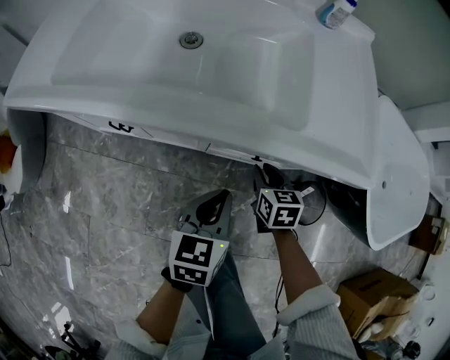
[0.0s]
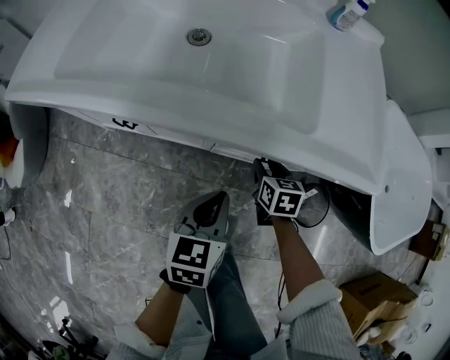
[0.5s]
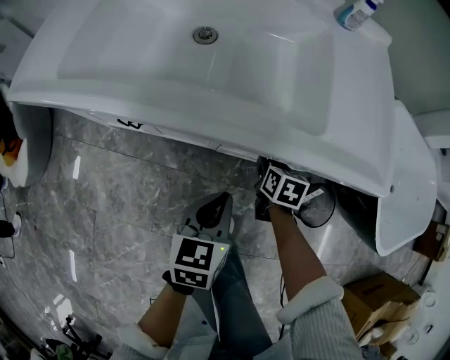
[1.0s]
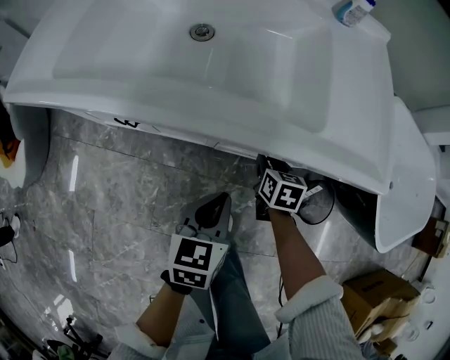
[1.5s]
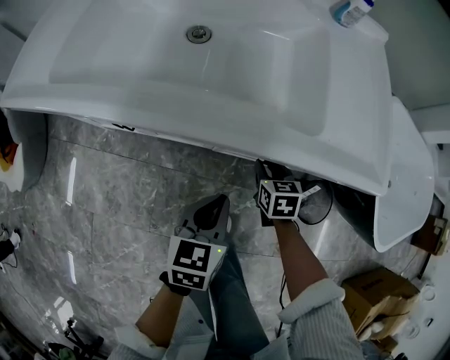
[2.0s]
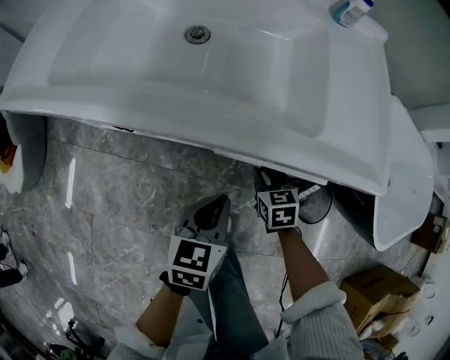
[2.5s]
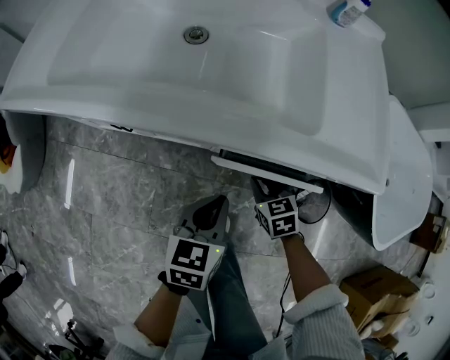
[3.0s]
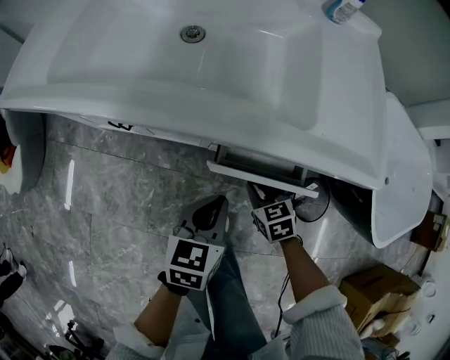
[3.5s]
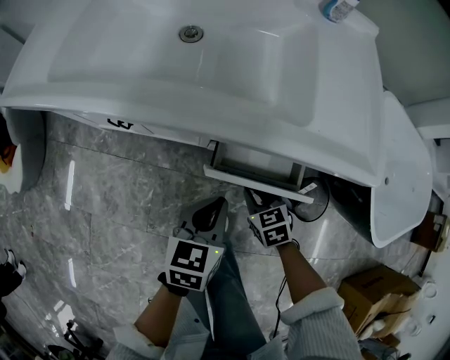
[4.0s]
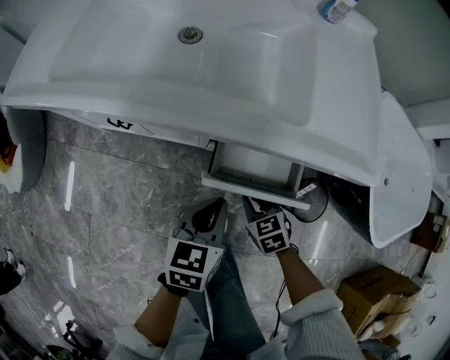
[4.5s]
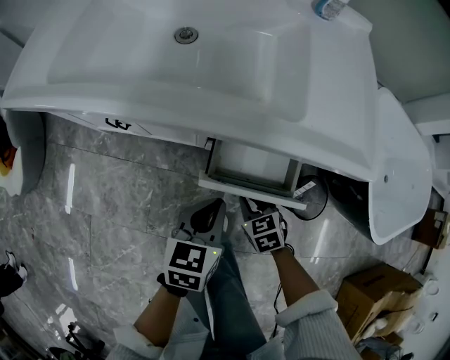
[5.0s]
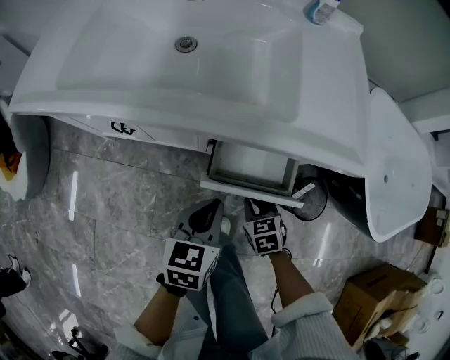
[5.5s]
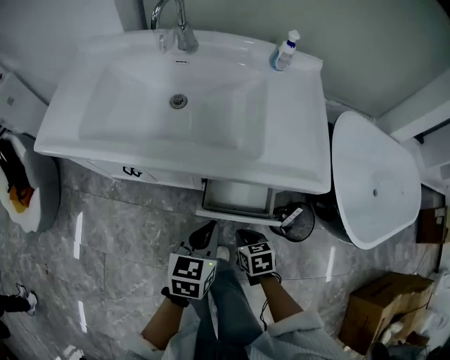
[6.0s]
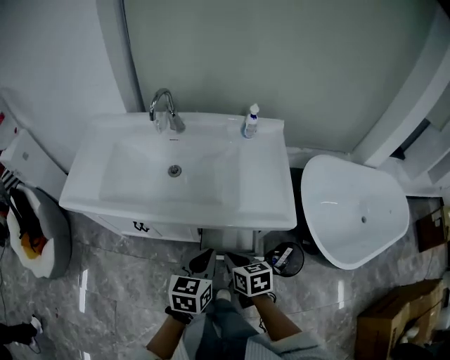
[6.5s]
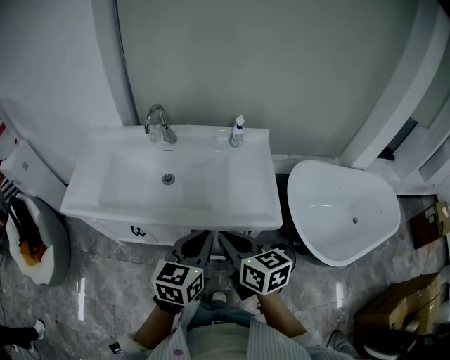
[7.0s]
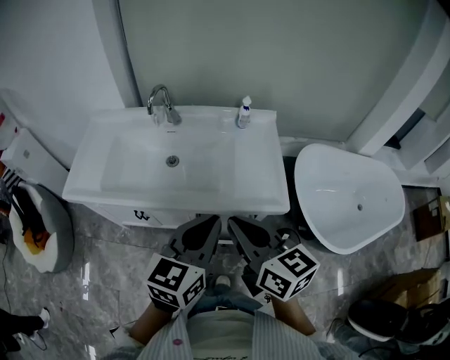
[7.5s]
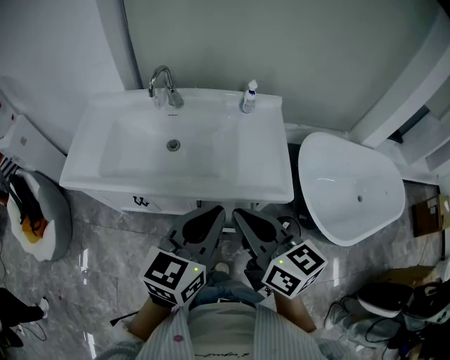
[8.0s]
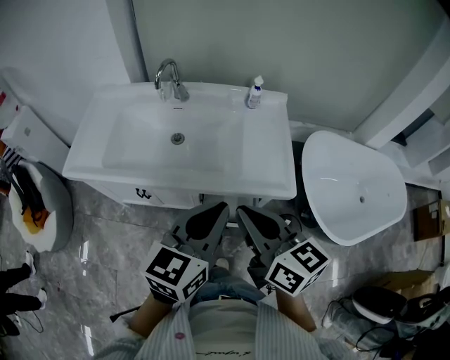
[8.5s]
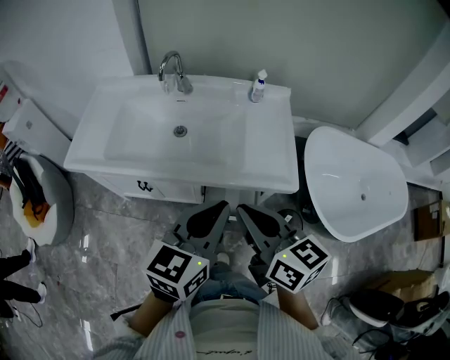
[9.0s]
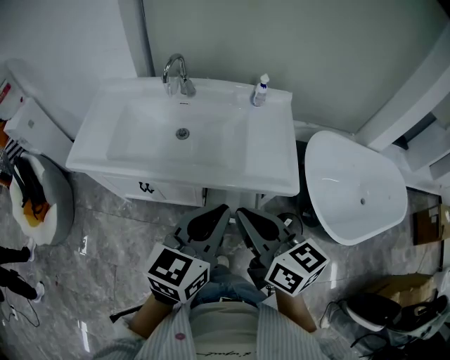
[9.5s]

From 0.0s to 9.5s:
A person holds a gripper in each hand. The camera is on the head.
From 0.0s to 2.0s: The grippers make only small movements.
From 2.0s to 4.0s: The right gripper heads backward, covering about 10 cm, and turns by about 20 degrees.
From 4.0s to 5.5s: The grippers make only small movements.
From 5.5s to 7.5s: The two grippers go about 40 cm upward. The left gripper changes its angle by some 30 degrees. The right gripper points its fingers some 50 degrees further upward.
From 7.5s to 9.5s: The grippers move only a little.

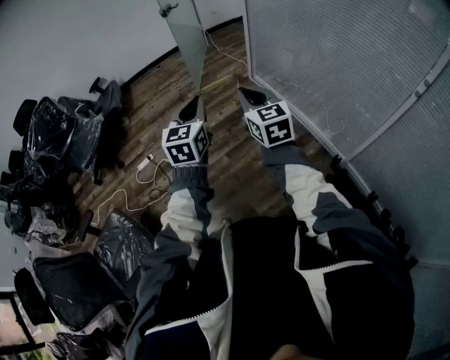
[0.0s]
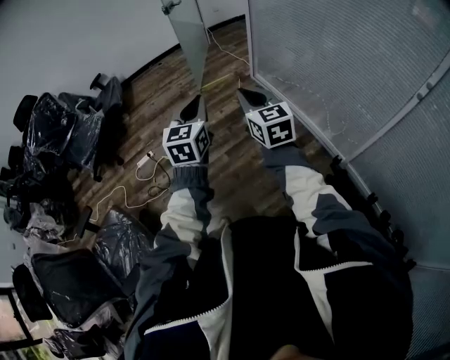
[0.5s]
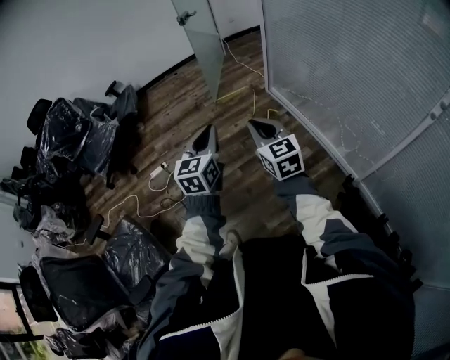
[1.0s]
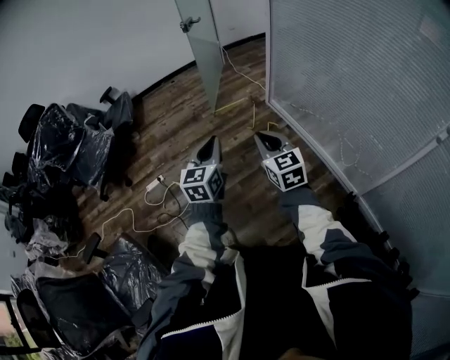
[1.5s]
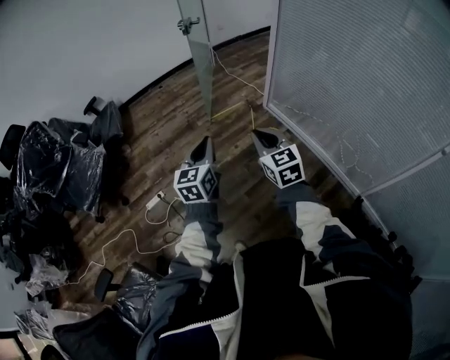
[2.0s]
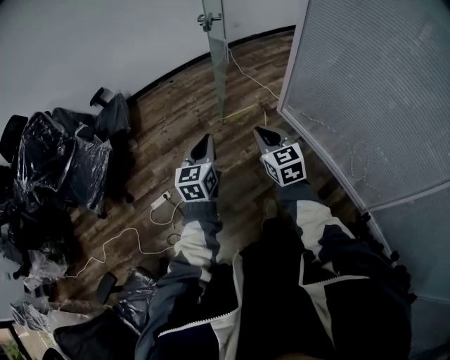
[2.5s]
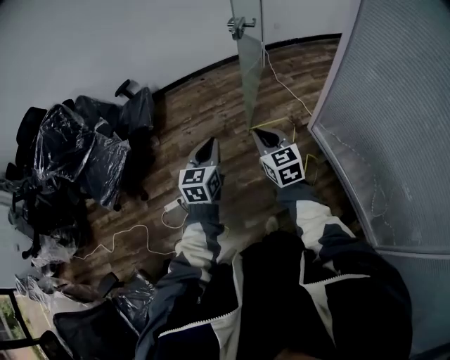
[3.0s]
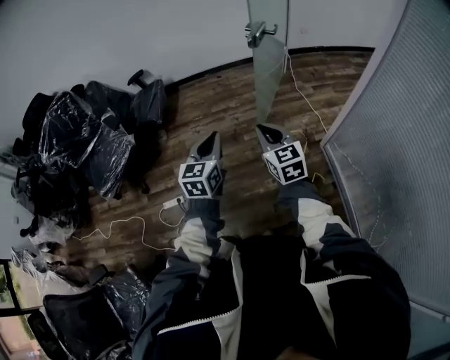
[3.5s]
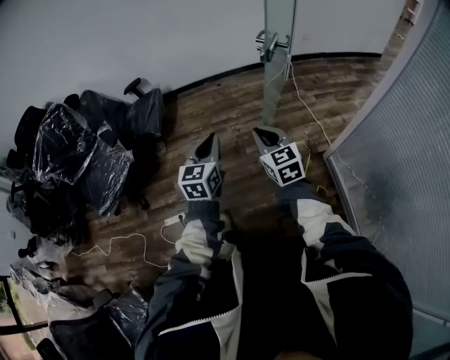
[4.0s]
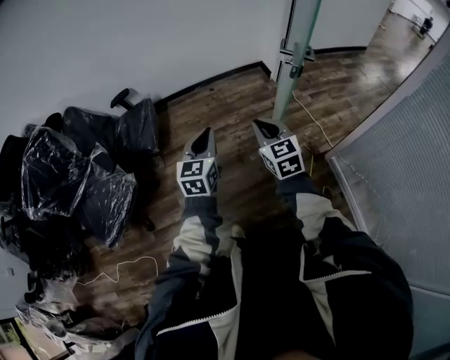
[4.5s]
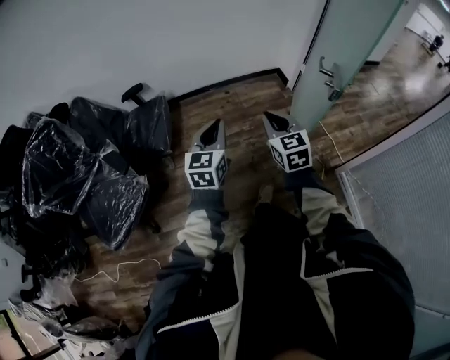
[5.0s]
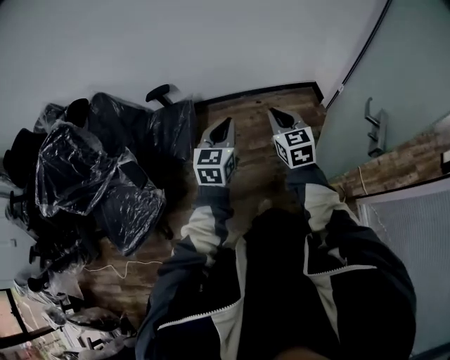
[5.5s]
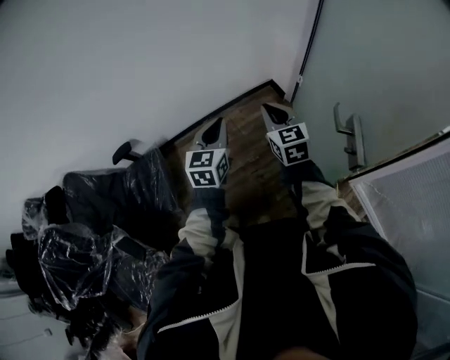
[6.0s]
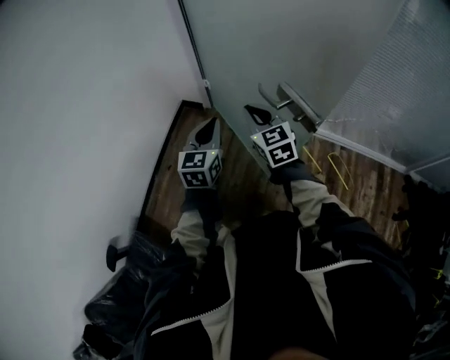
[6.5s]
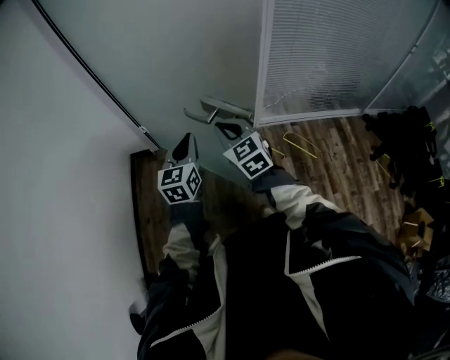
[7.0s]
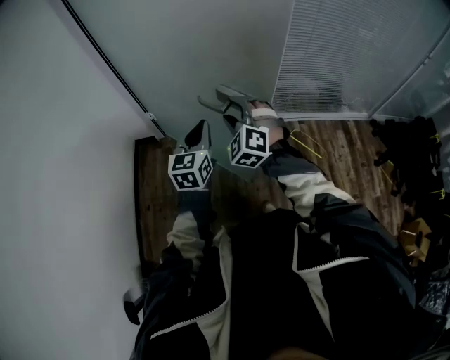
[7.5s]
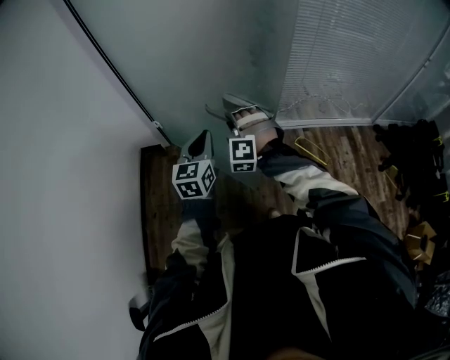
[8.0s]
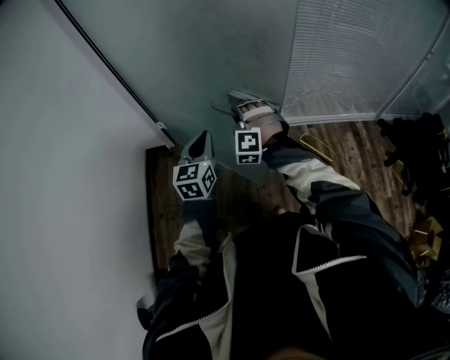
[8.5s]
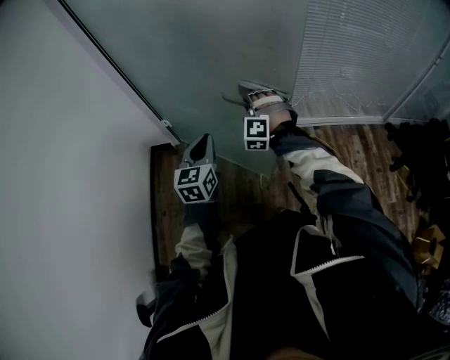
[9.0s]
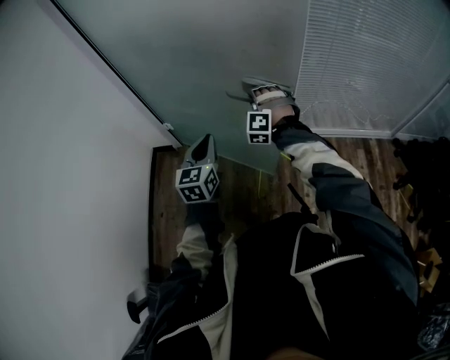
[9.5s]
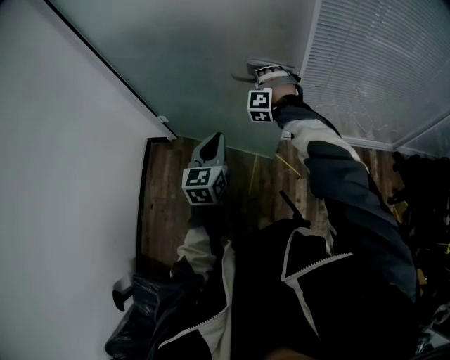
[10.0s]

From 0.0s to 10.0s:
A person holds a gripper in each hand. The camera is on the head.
From 0.0s to 2.0s: The two grippers go approximately 25 cm forward and to the left.
From 2.0s to 4.0s: Both grippers are carried forward, about 40 cm. The left gripper changes its angle by about 20 degrees. Meanwhile the right gripper changes its angle by approximately 20 degrees.
From 4.0s to 6.0s: Both grippers are carried forward, about 60 cm. The right gripper swivels some 20 degrees.
From 6.0s to 8.0s: The left gripper changes place by about 30 cm, and rotates some 60 degrees. The right gripper moves approximately 25 cm, turns by some 80 degrees, and opens.
From 8.0s to 10.0s: The right gripper shifts about 30 cm forward, while the left gripper moves forward and to the right, some 15 cm.

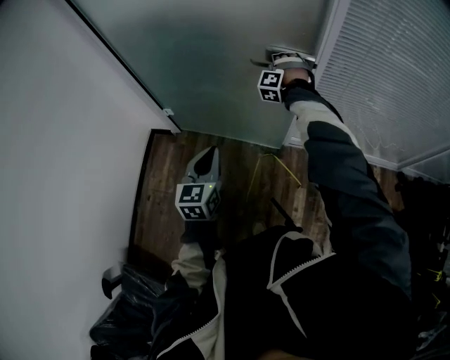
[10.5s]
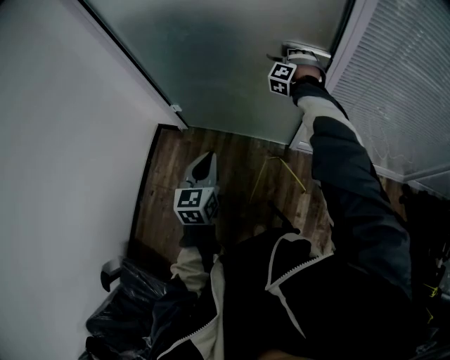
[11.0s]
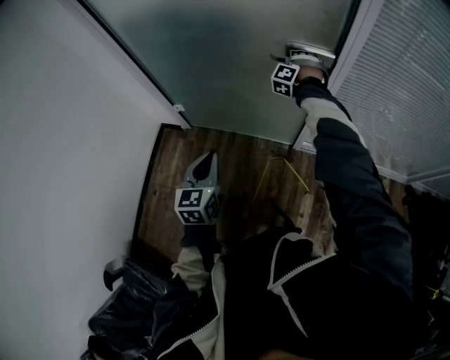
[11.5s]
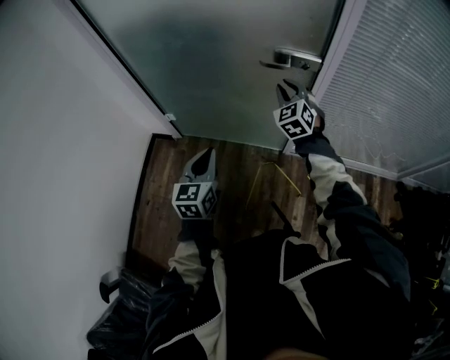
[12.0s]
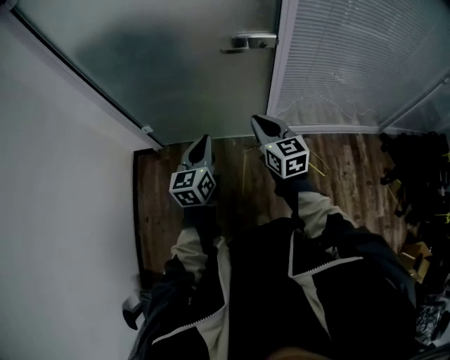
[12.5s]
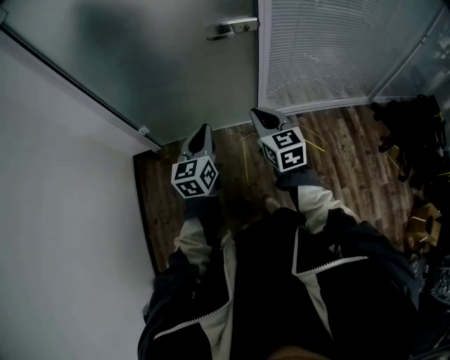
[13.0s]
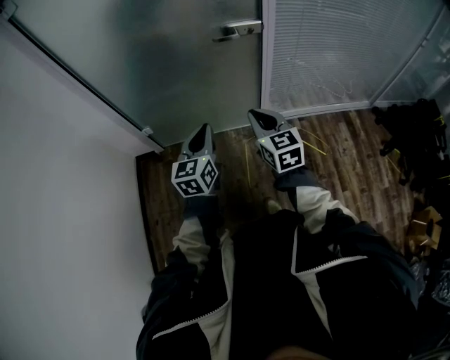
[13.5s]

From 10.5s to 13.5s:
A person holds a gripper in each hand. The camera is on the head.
From 10.5s to 12.0s: The right gripper shifts roughly 10 cm backward and upward, and rolls clockwise, seen from behind, by approximately 50 degrees.
From 12.0s to 13.5s: The right gripper is displaced backward by roughly 30 cm, and rotates around the line of its fingers by about 40 degrees, clockwise from behind. Meanwhile the left gripper heads backward, covering roughly 5 cm.

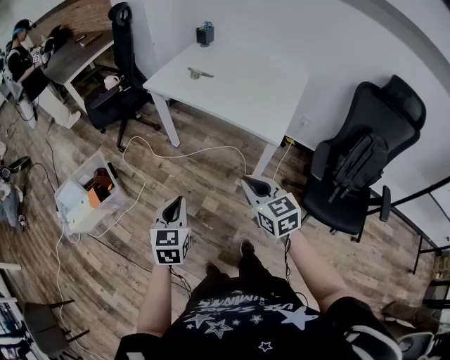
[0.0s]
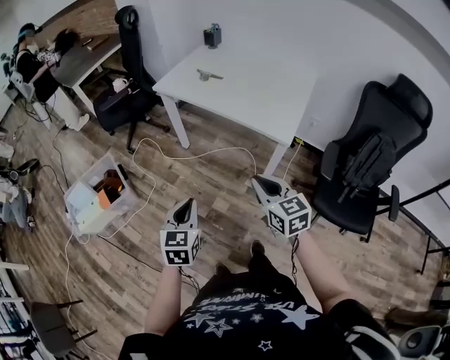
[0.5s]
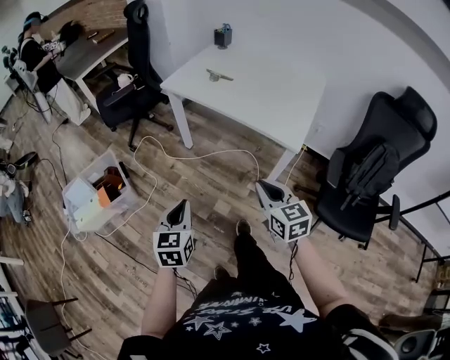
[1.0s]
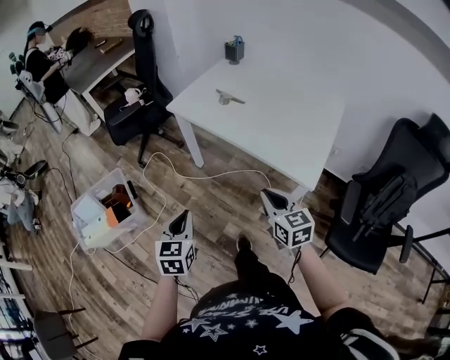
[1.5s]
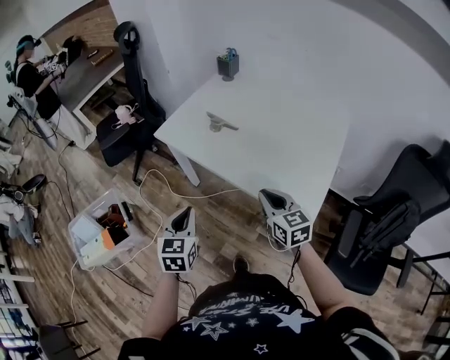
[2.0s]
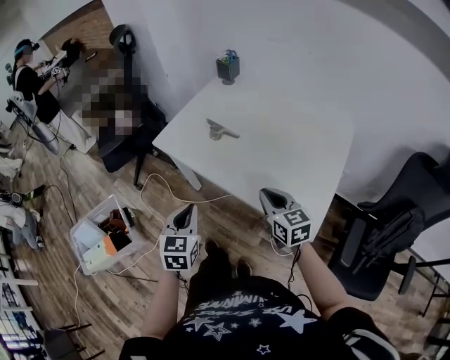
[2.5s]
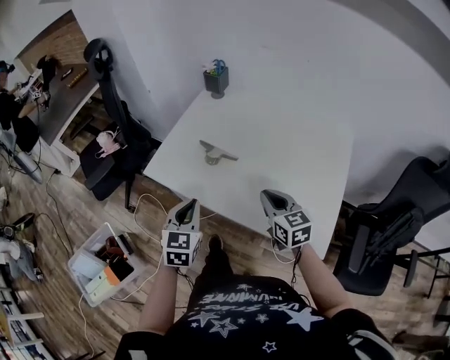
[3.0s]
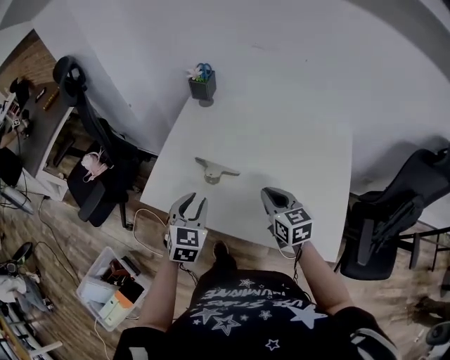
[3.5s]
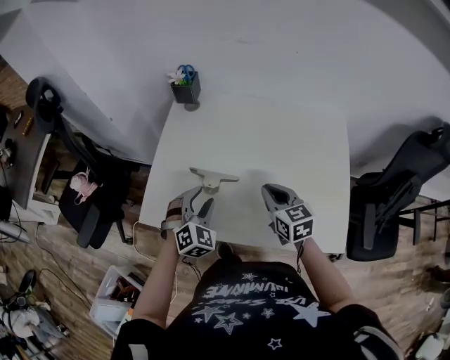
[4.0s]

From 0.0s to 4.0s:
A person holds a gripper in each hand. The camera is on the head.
From 0.0s to 2.0s: The two grippers go some 35 cm forward.
From 2.0s to 4.0s: The left gripper shifts by about 40 cm, rolls clockwise, seen from behind, by some 60 degrees, and opens. Meanwhile the right gripper shifts by approximately 30 cm, and swivels some 30 degrees.
